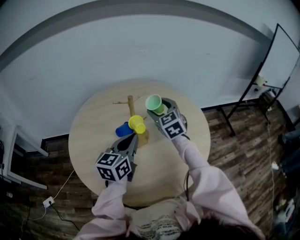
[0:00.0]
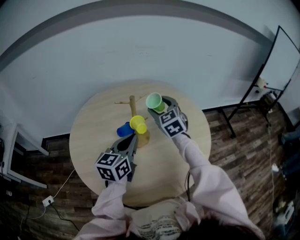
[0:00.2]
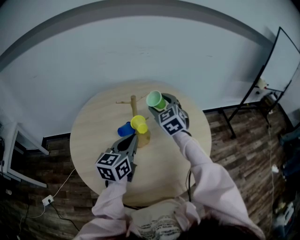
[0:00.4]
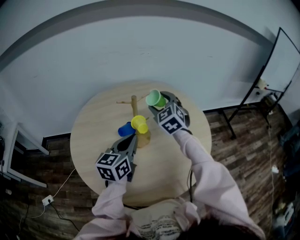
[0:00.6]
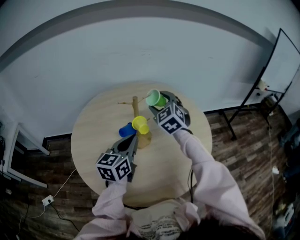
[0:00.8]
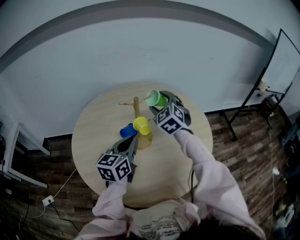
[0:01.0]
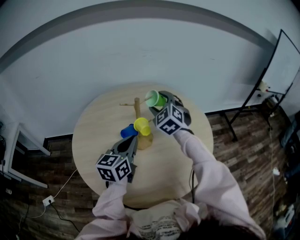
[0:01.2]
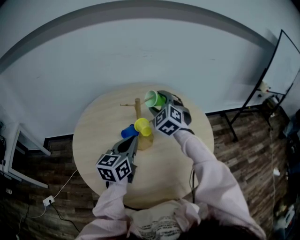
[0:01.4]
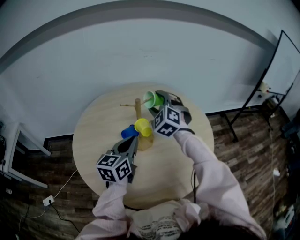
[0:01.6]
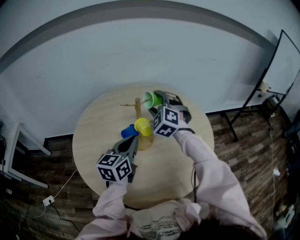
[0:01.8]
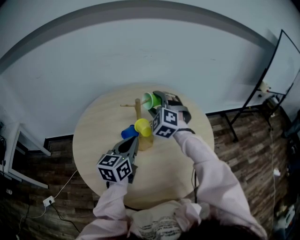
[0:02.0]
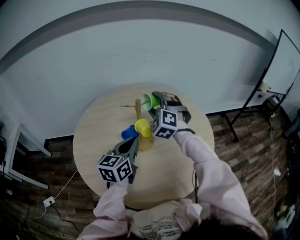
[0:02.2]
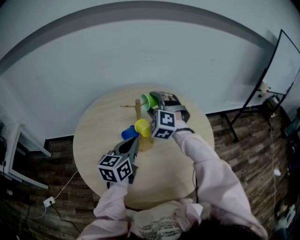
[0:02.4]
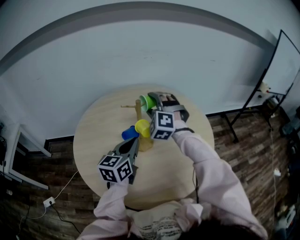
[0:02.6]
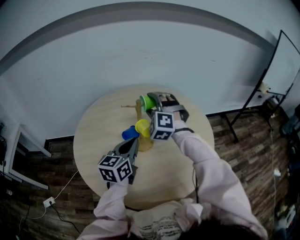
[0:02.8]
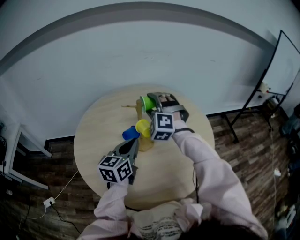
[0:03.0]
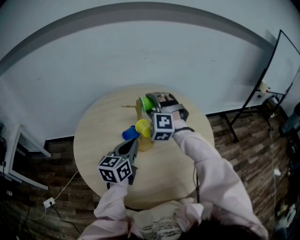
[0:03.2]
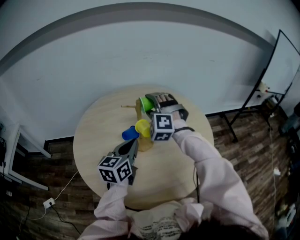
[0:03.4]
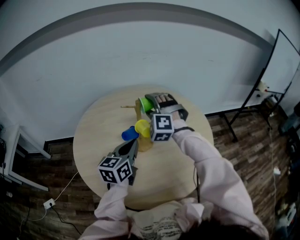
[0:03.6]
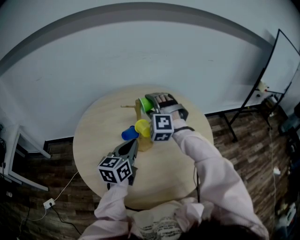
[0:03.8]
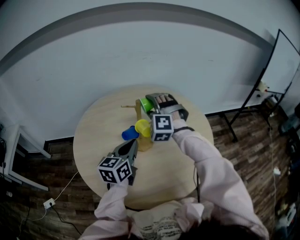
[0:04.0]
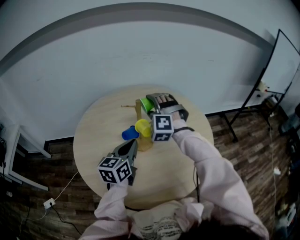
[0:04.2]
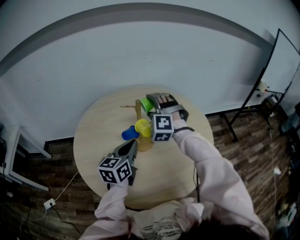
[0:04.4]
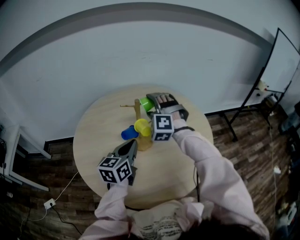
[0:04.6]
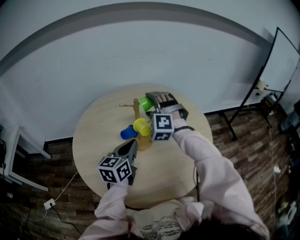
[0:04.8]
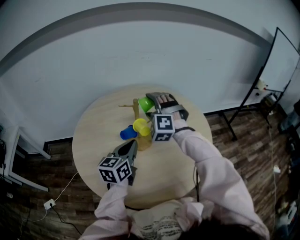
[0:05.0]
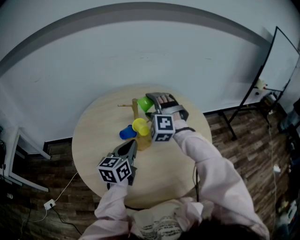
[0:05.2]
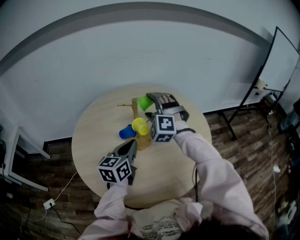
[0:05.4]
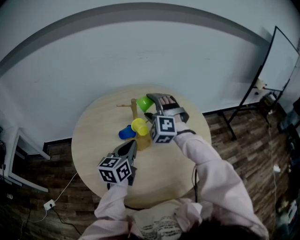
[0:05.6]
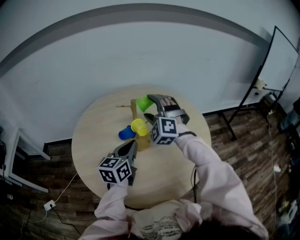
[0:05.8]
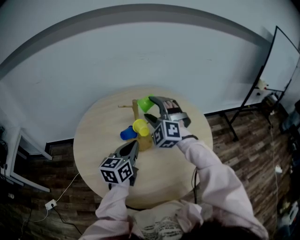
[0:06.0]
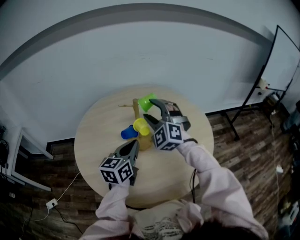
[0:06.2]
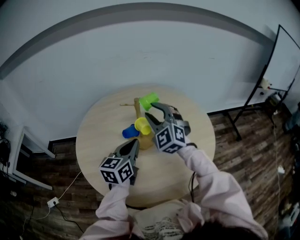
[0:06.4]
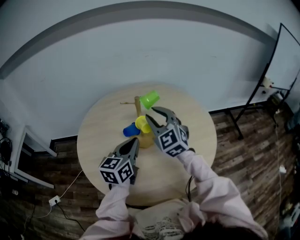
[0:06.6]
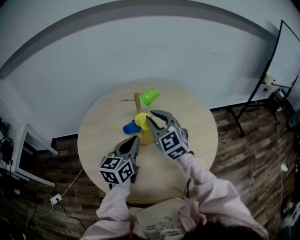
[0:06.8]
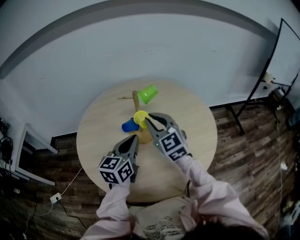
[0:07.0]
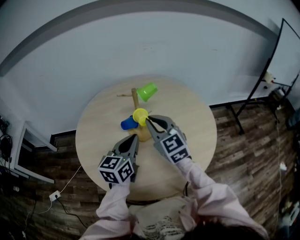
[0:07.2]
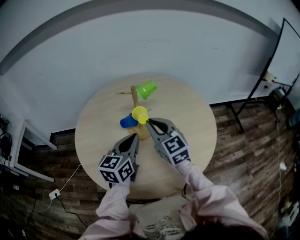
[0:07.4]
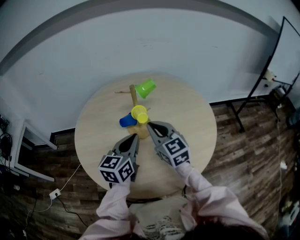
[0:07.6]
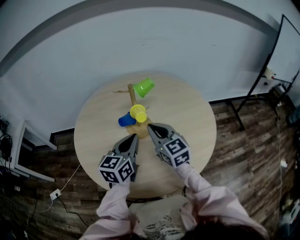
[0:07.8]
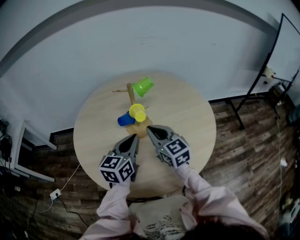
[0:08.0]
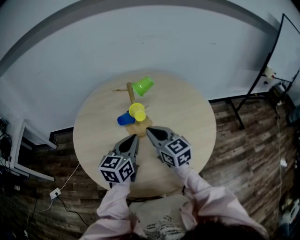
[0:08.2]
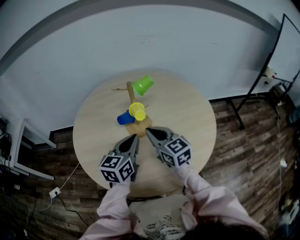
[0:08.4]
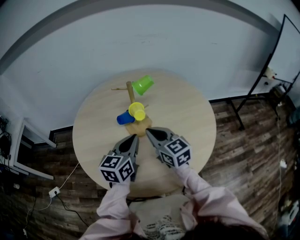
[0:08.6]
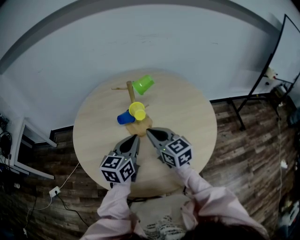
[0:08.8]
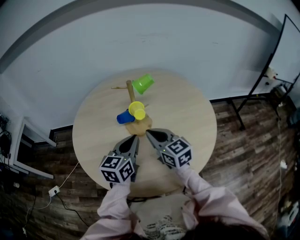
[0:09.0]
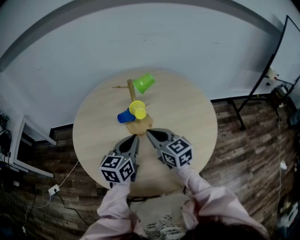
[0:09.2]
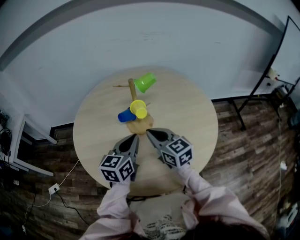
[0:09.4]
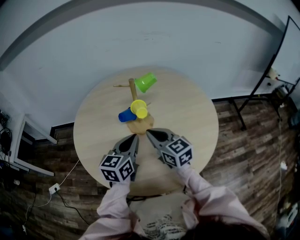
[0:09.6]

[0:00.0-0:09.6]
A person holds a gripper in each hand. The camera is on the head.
0:00.0 to 0:01.6: The right gripper ends up roughly 5 cm from where it was, and turns by some 30 degrees.
0:01.6 to 0:03.2: The right gripper turns by about 20 degrees.
0:03.2 to 0:04.8: Neither gripper changes place.
0:04.8 to 0:06.4: The right gripper goes roughly 5 cm backward, changes its angle by approximately 40 degrees, and closes its fingers.
0:06.4 to 0:08.0: The right gripper heads downward and backward, covering some 15 cm, twists approximately 50 degrees clockwise, seen from behind, and closes its fingers.
0:08.0 to 0:09.6: The grippers move only a little.

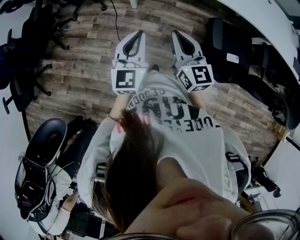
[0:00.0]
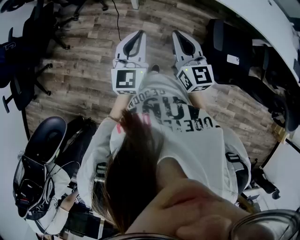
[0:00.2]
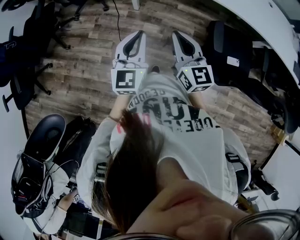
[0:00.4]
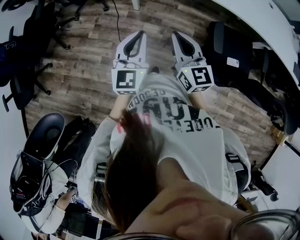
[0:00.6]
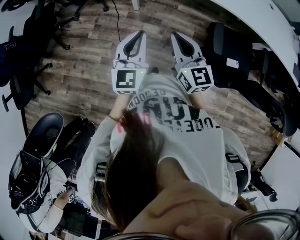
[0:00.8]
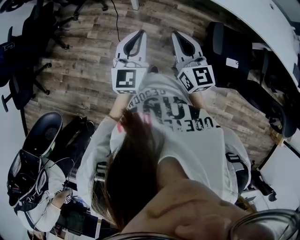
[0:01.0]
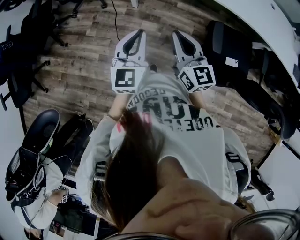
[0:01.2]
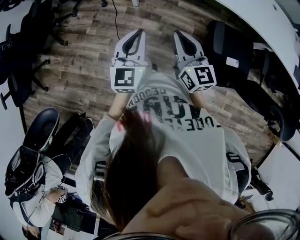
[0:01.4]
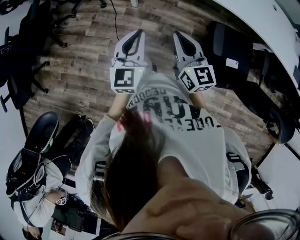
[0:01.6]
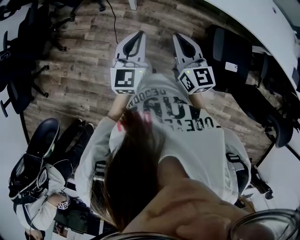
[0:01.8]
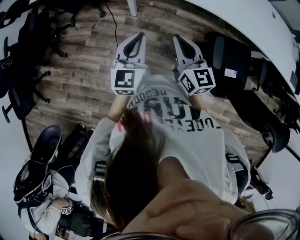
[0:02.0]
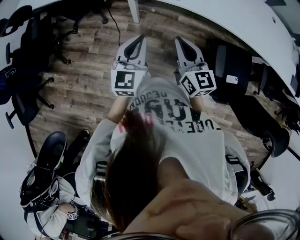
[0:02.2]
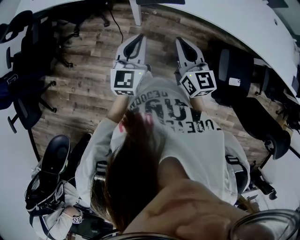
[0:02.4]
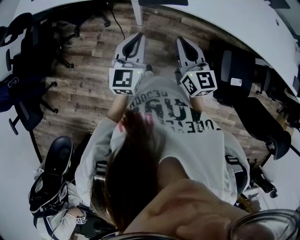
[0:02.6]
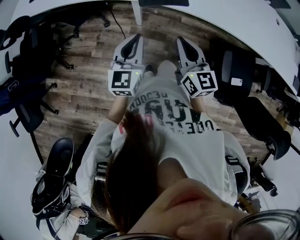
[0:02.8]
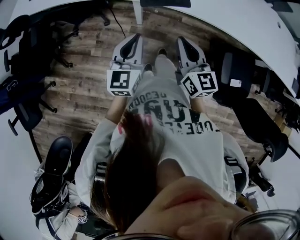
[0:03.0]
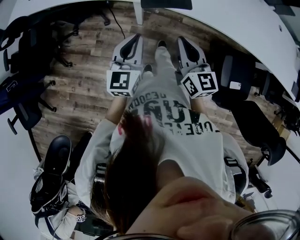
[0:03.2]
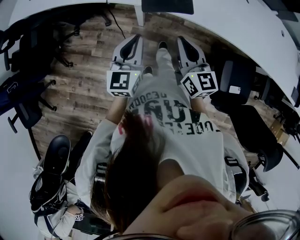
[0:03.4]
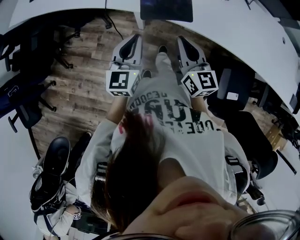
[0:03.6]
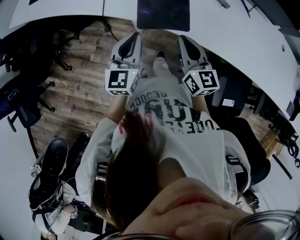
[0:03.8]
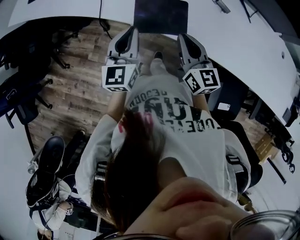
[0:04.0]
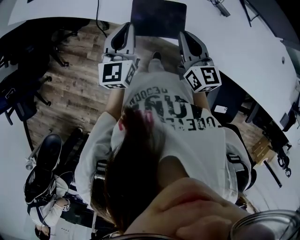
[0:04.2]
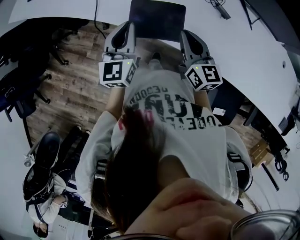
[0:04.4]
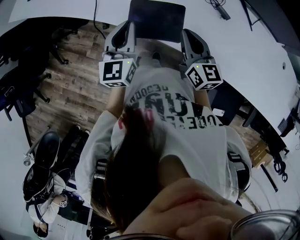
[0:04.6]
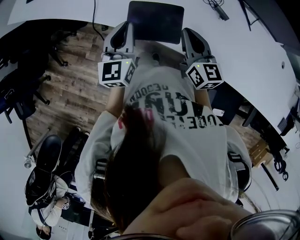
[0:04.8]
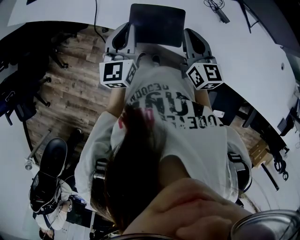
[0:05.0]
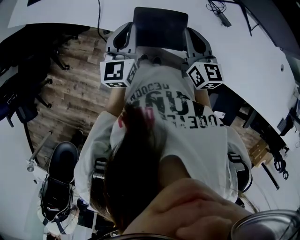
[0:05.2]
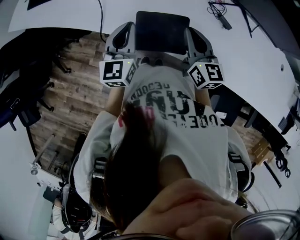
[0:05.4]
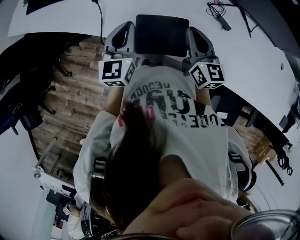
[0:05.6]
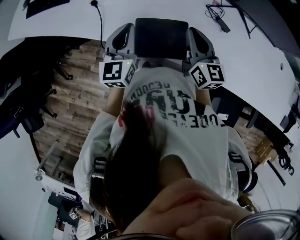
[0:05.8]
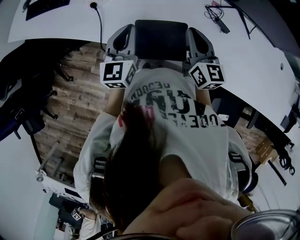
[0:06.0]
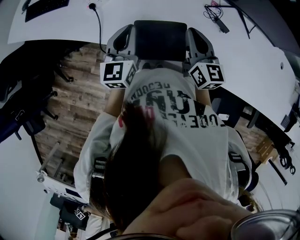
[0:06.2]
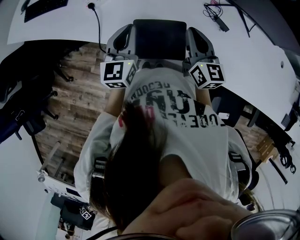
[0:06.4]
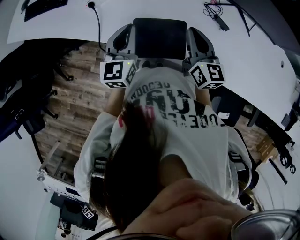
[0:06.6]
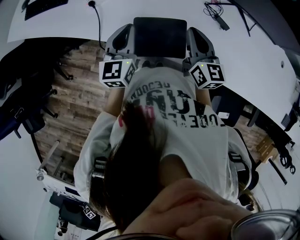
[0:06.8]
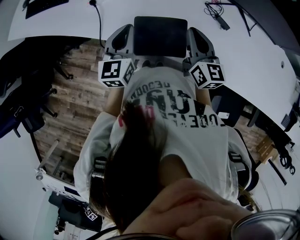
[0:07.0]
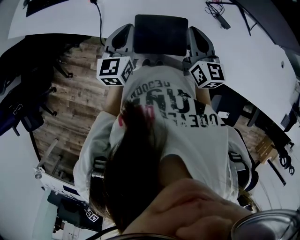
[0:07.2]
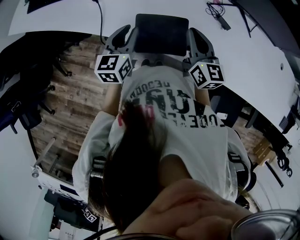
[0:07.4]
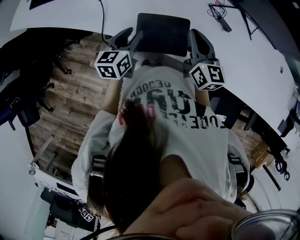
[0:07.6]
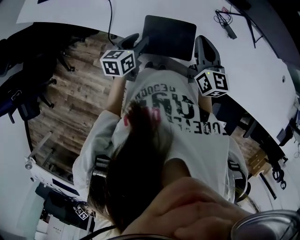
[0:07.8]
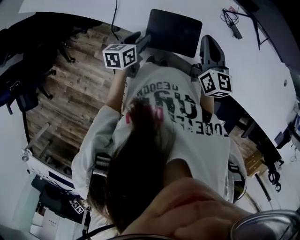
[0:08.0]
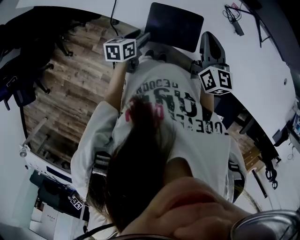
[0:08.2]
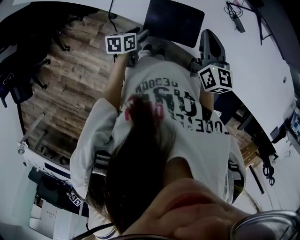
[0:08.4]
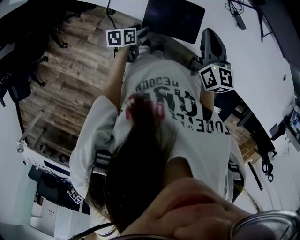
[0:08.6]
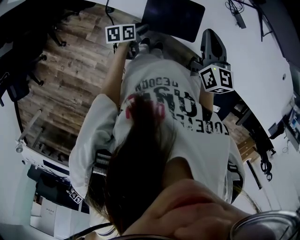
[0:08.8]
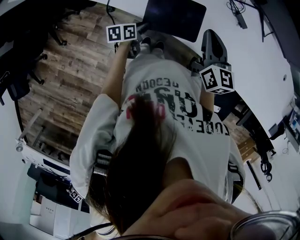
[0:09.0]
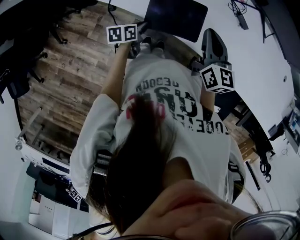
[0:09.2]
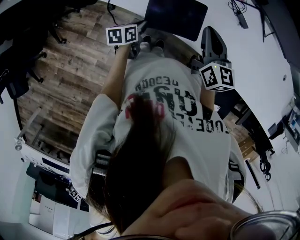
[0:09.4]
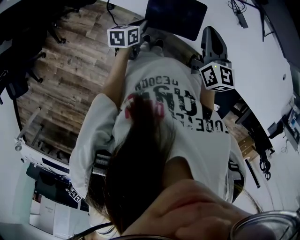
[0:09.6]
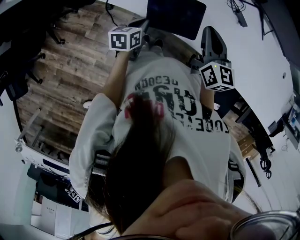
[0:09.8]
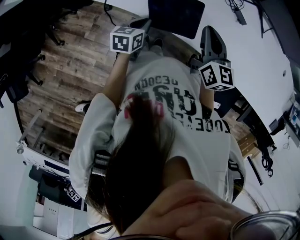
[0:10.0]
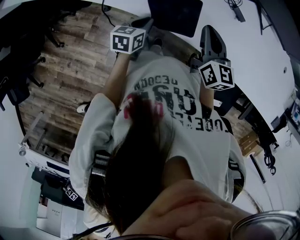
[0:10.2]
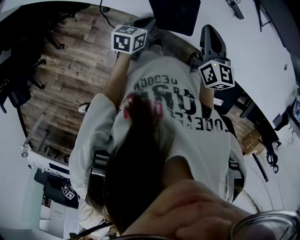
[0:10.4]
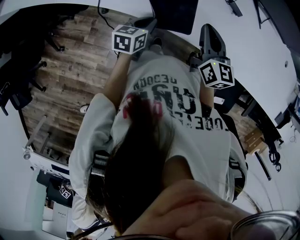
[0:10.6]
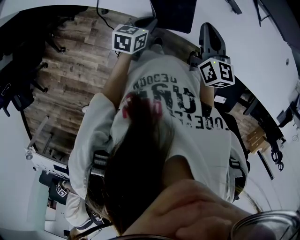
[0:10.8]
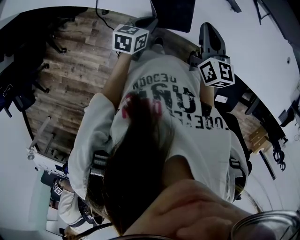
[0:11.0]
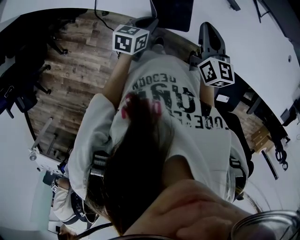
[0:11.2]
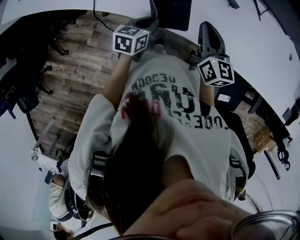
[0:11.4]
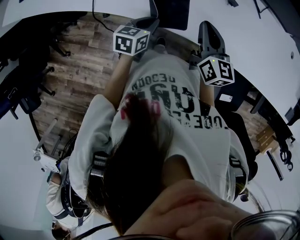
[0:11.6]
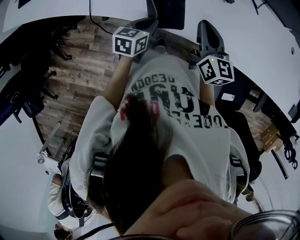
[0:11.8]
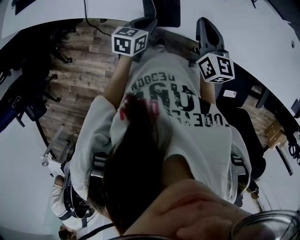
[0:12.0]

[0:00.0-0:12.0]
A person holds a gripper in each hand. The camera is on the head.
0:00.0 to 0:01.6: The left gripper moves approximately 5 cm.
0:01.6 to 0:03.0: The right gripper heads forward, covering about 20 cm. The left gripper shifts roughly 20 cm forward and to the left.
0:03.0 to 0:04.4: The right gripper goes about 25 cm forward and to the right; the left gripper goes roughly 20 cm forward.
0:04.4 to 0:06.0: The grippers both shift forward by some 10 cm.
0:06.0 to 0:07.6: The left gripper is displaced downward by about 5 cm, turns by about 20 degrees, and opens its fingers.
0:07.6 to 0:09.0: The left gripper shifts approximately 20 cm downward, and rotates some 40 degrees.
0:09.0 to 0:10.4: The left gripper moves upward, about 10 cm, changes its angle by some 30 degrees, and closes.
0:10.4 to 0:12.0: The grippers both shift to the right by some 5 cm.

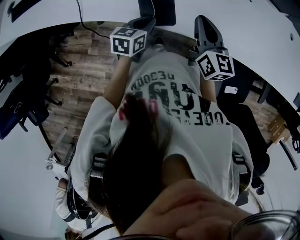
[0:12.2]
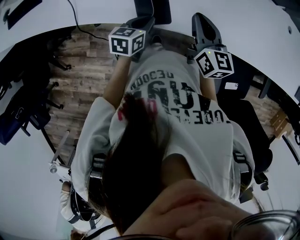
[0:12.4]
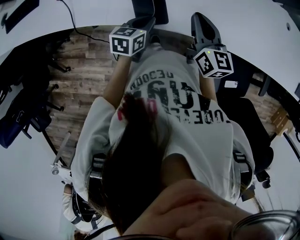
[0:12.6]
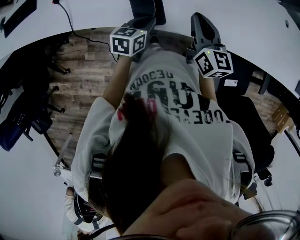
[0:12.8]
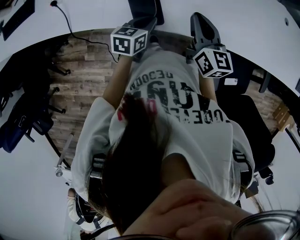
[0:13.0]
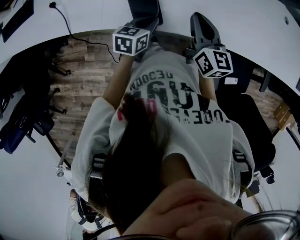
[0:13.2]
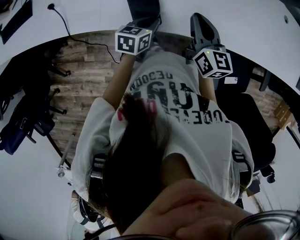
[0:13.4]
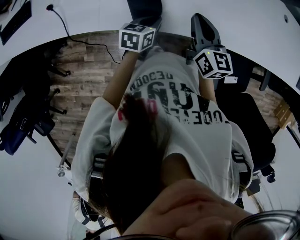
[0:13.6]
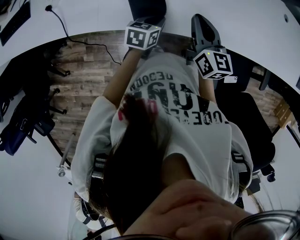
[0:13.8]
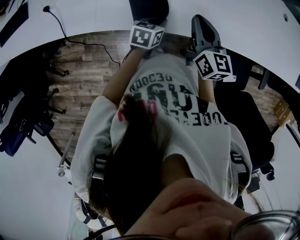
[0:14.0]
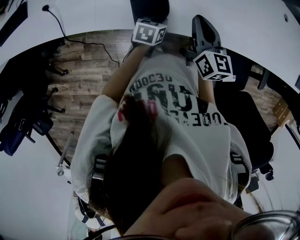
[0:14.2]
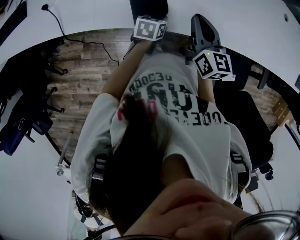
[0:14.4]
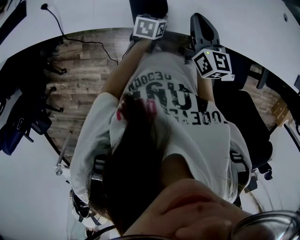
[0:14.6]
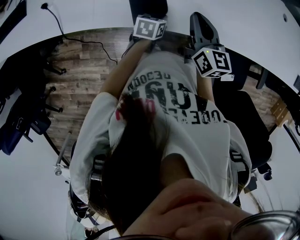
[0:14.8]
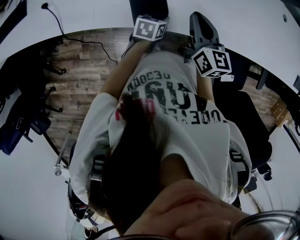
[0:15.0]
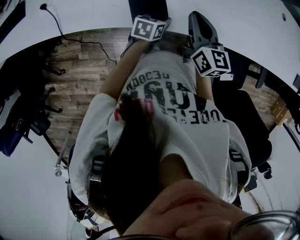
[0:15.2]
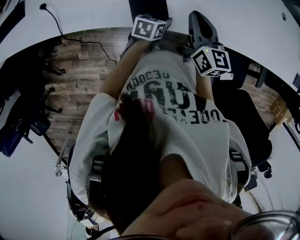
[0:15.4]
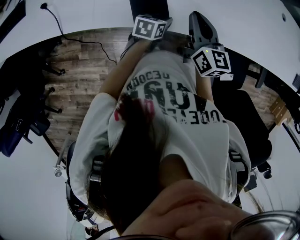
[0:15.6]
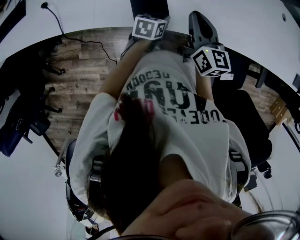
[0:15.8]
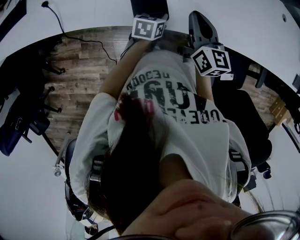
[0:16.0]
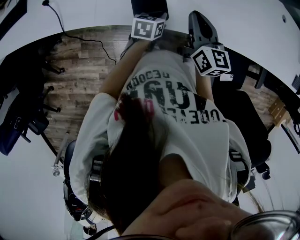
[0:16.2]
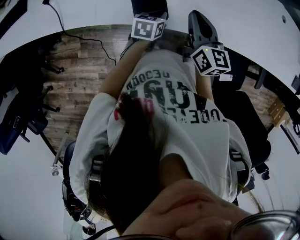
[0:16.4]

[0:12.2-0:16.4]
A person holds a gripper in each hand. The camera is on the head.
0:12.2 to 0:13.6: The left gripper goes roughly 10 cm to the right, while the right gripper moves approximately 5 cm.
0:13.6 to 0:15.0: The left gripper goes approximately 5 cm downward.
0:15.0 to 0:16.4: The left gripper opens, then closes again.
